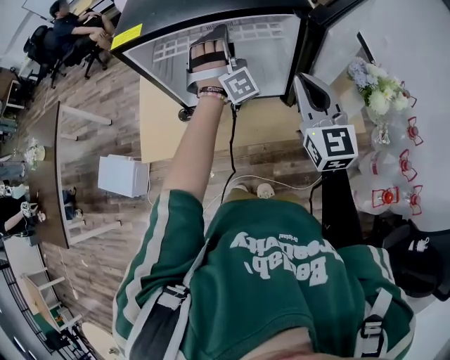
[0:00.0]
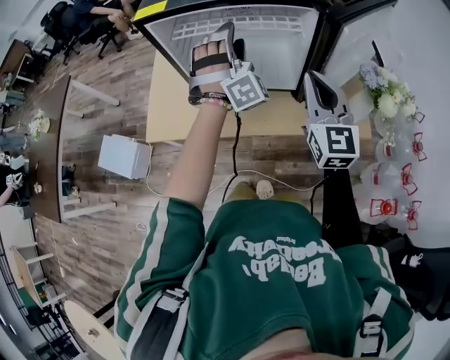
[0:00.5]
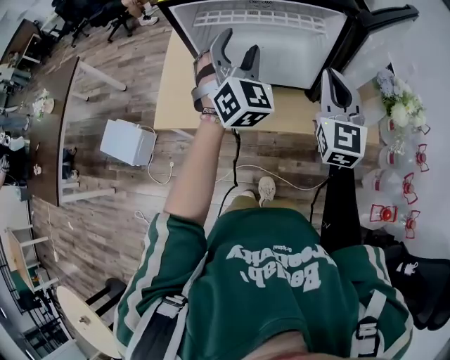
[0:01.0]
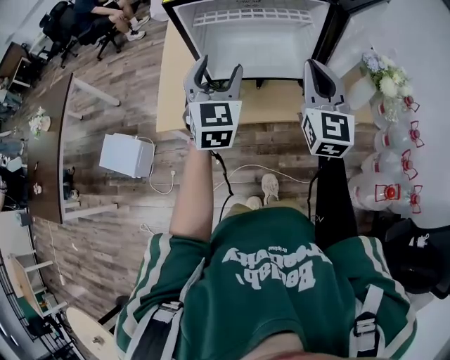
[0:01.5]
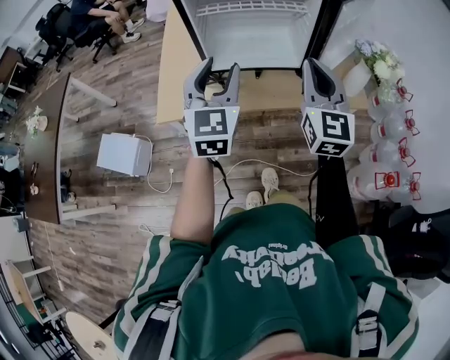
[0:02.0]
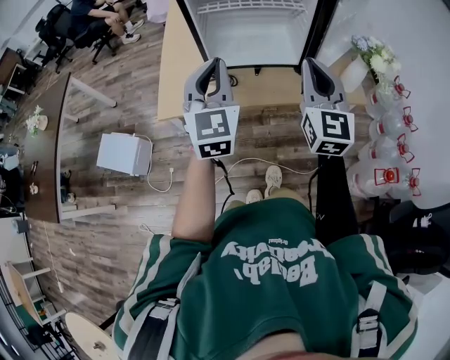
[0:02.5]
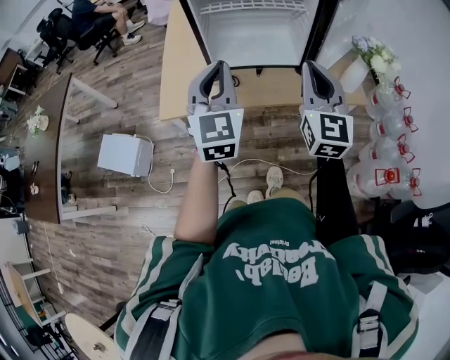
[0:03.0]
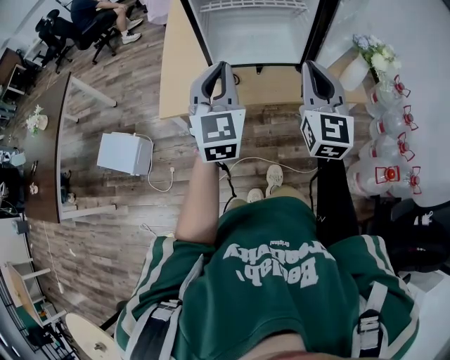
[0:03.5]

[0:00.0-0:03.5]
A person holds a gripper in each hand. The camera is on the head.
0:00.0 to 0:02.0: The left gripper moves backward and to the left, about 35 cm, and twists roughly 80 degrees counterclockwise, seen from behind. Meanwhile the right gripper moves backward and to the left, some 15 cm.
0:02.0 to 0:03.5: The left gripper closes up.

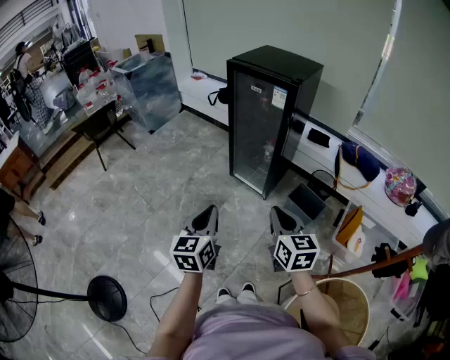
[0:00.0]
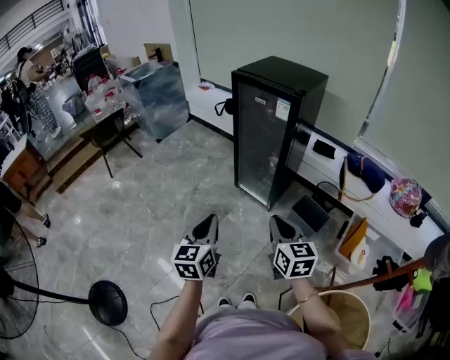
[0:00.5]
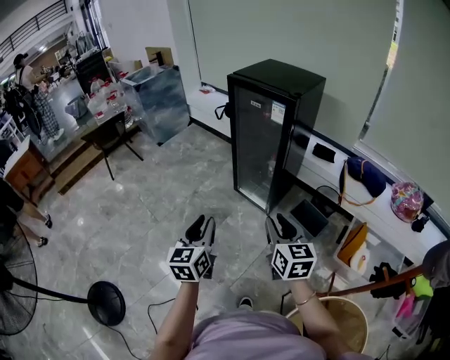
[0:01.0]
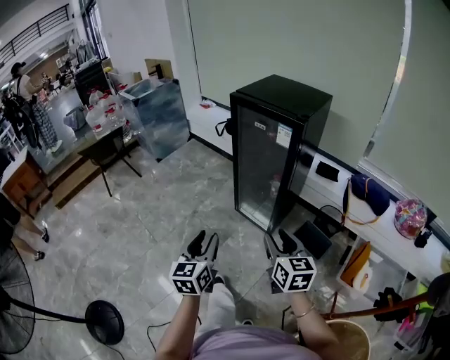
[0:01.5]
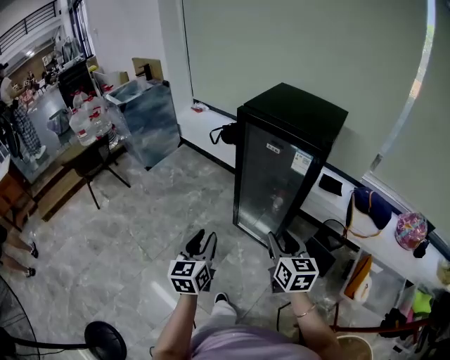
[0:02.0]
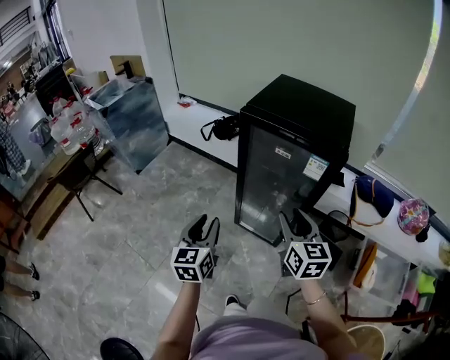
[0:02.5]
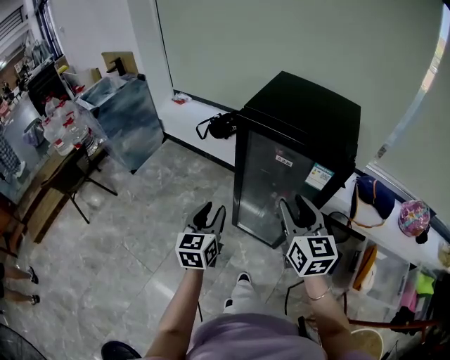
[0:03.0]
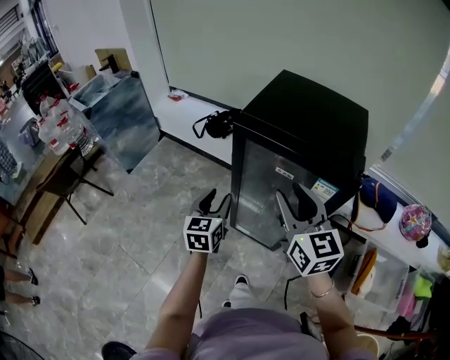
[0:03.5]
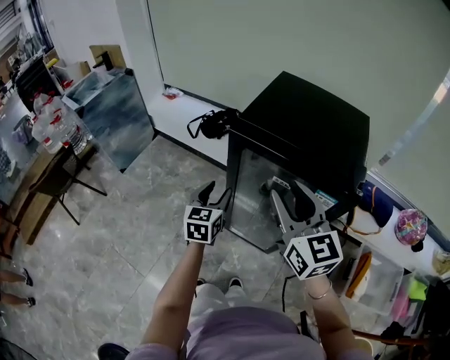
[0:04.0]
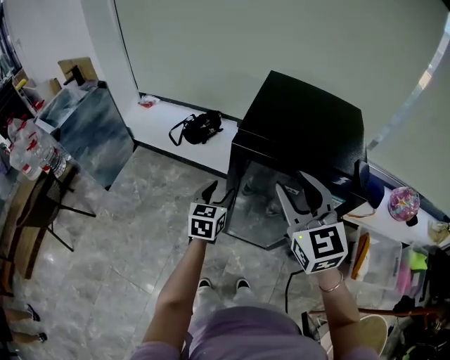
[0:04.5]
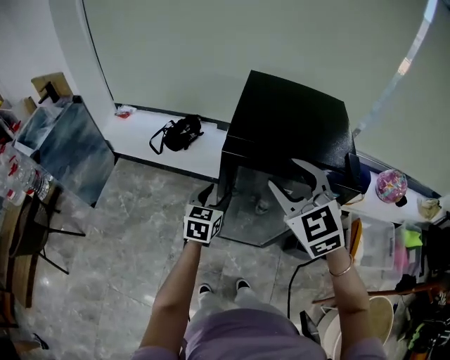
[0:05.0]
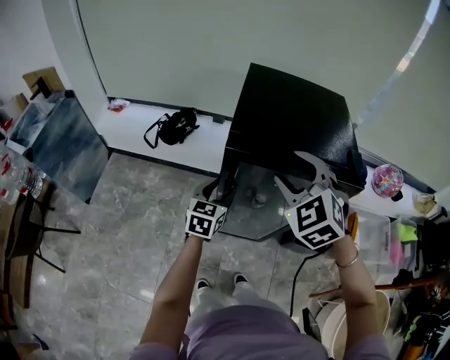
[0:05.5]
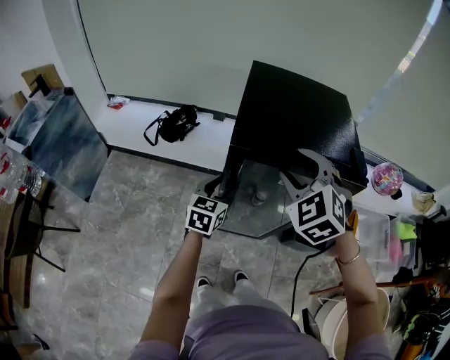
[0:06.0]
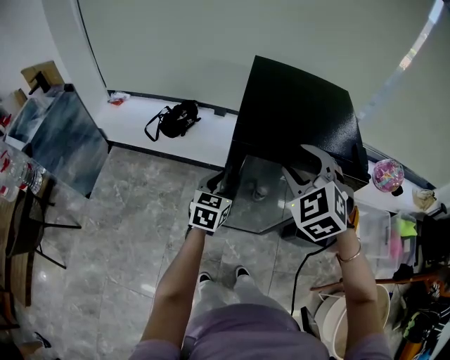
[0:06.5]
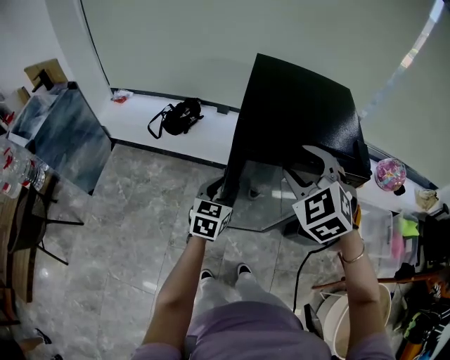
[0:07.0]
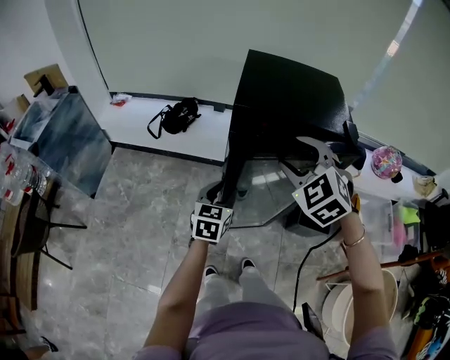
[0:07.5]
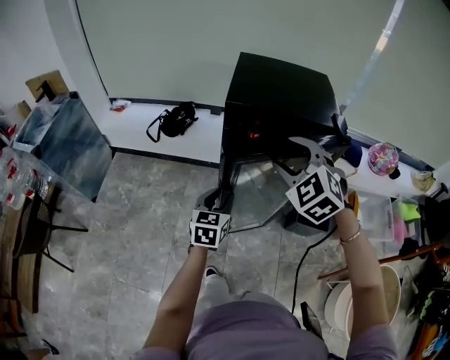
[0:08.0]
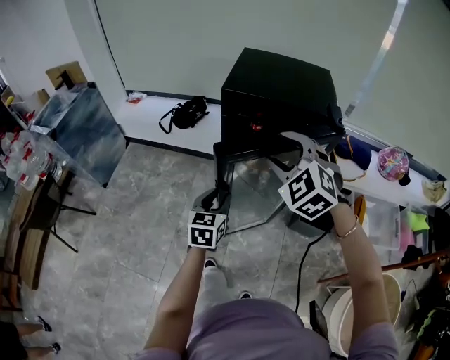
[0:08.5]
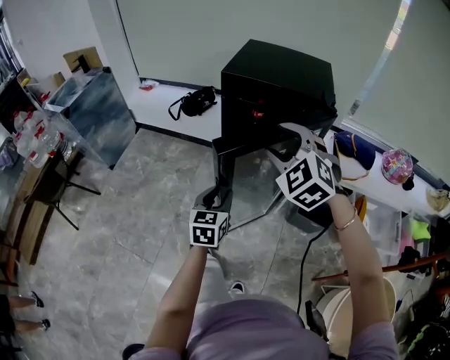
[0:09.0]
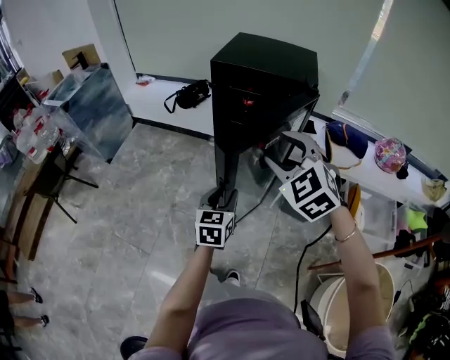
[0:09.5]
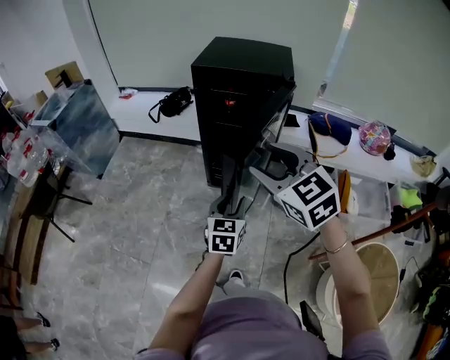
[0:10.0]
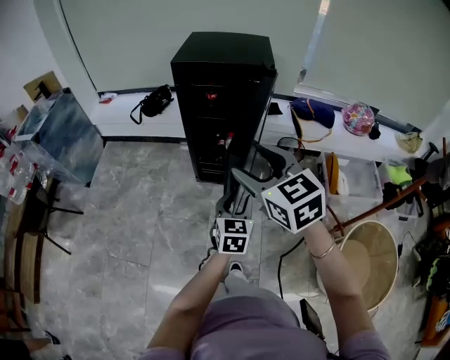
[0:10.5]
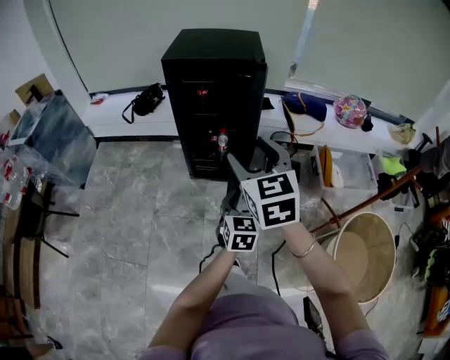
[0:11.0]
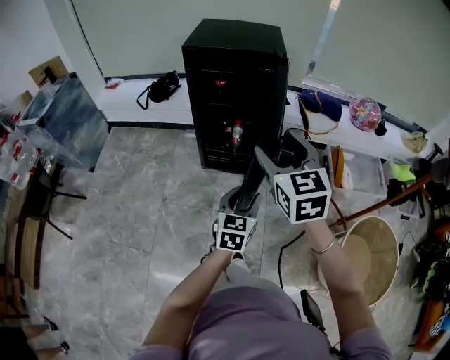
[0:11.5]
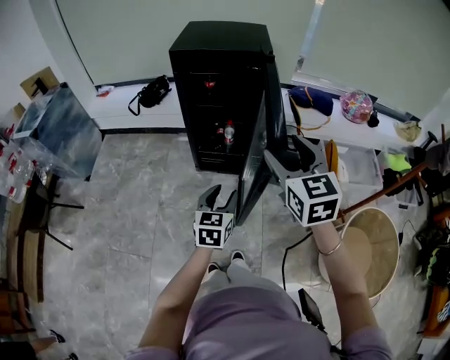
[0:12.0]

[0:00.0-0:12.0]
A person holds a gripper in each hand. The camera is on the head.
0:00.0 to 0:02.0: The grippers both shift forward by roughly 25 cm. The right gripper opens. Meanwhile the left gripper opens.
0:02.0 to 0:04.0: The right gripper goes approximately 30 cm forward and upward. The left gripper is displaced forward by about 40 cm.
0:04.0 to 0:06.0: The left gripper moves some 10 cm, and rotates roughly 30 degrees. Meanwhile the right gripper ends up some 10 cm from where it was, and turns by about 60 degrees.
0:06.0 to 0:08.0: The left gripper moves backward, roughly 15 cm; the right gripper moves backward, approximately 10 cm.
0:08.0 to 0:10.0: The right gripper is displaced backward by about 25 cm, and changes its angle by approximately 30 degrees. The left gripper moves backward and to the right, roughly 30 cm.
0:10.0 to 0:12.0: The left gripper reaches about 5 cm to the right, then returns. The right gripper goes some 5 cm to the right, and changes its angle by about 30 degrees.

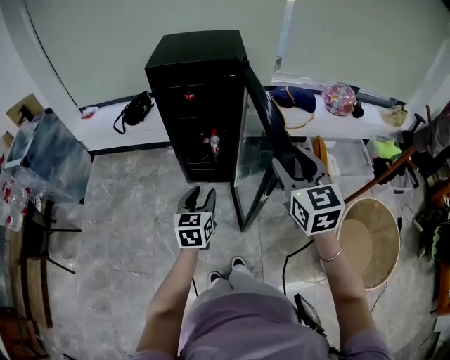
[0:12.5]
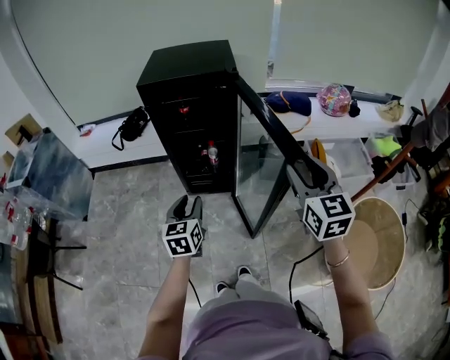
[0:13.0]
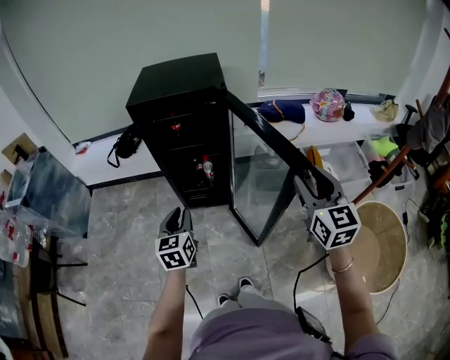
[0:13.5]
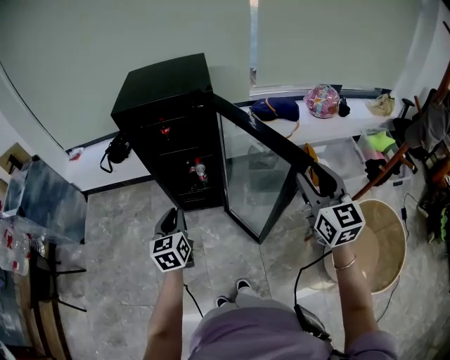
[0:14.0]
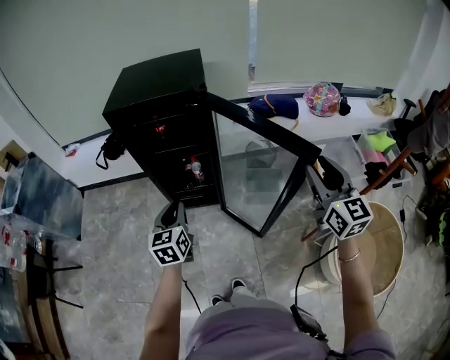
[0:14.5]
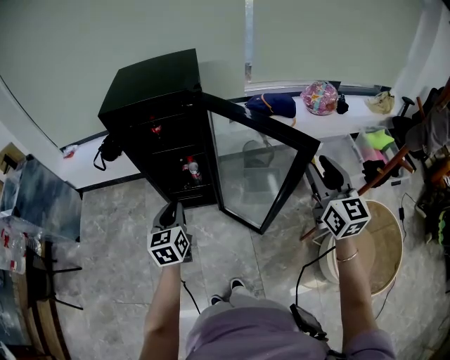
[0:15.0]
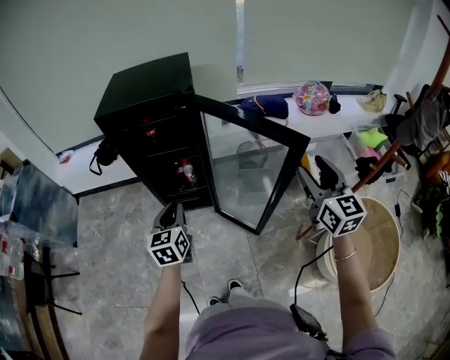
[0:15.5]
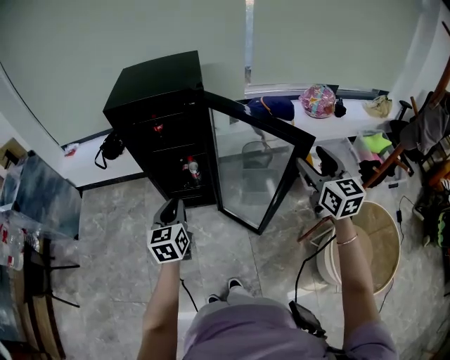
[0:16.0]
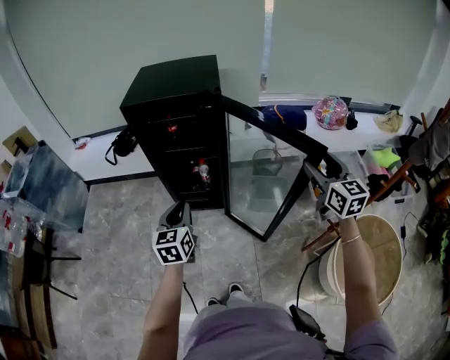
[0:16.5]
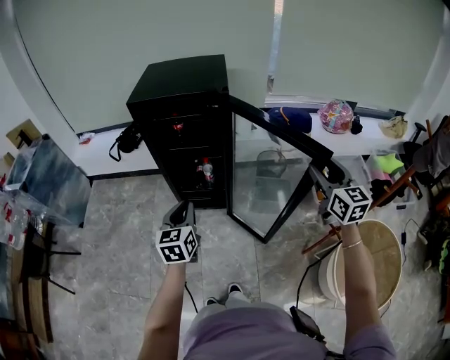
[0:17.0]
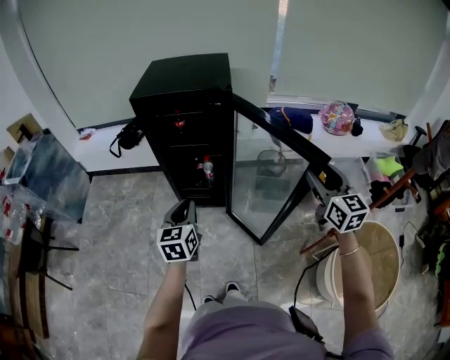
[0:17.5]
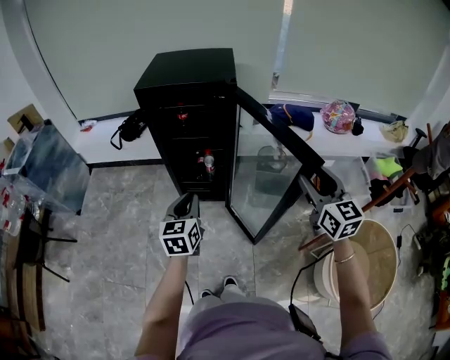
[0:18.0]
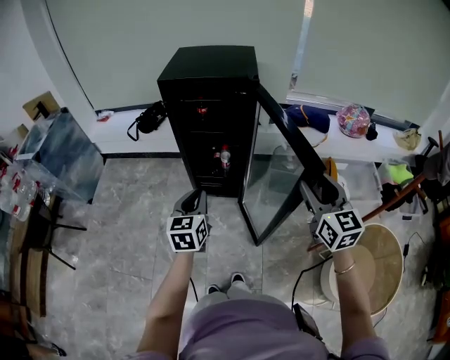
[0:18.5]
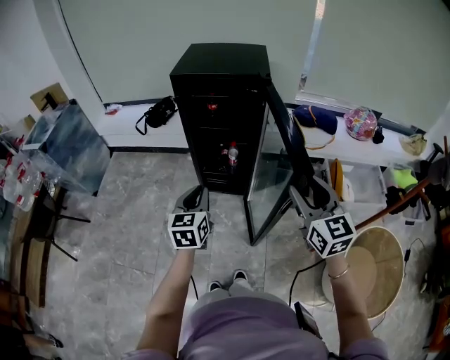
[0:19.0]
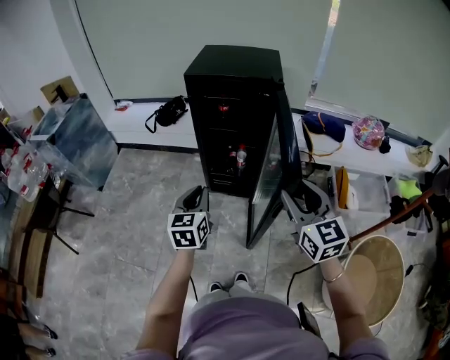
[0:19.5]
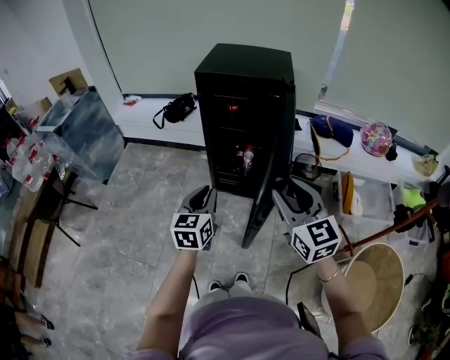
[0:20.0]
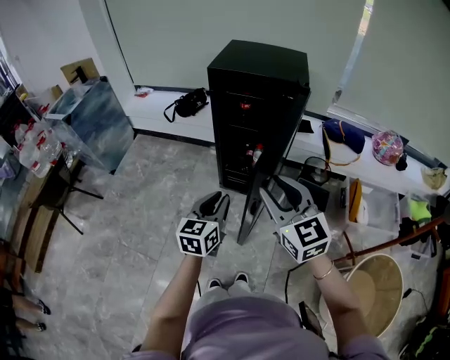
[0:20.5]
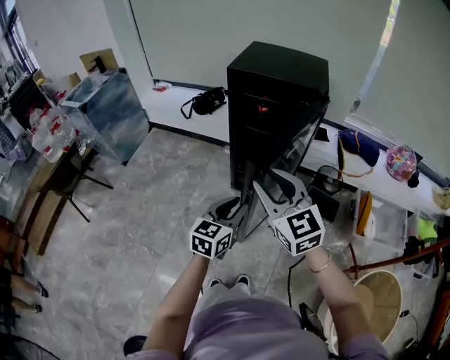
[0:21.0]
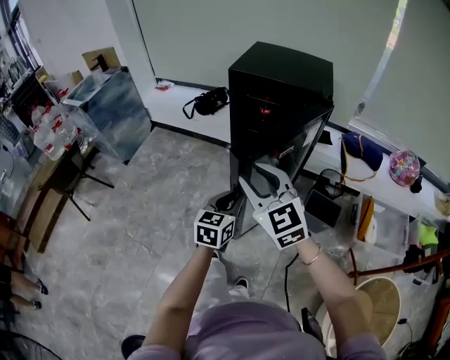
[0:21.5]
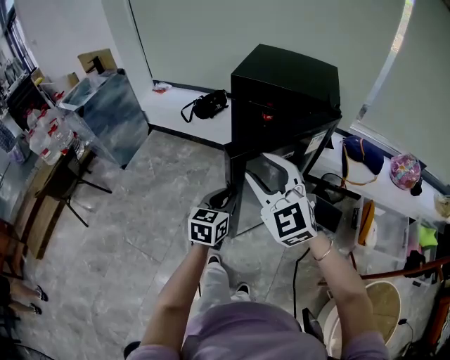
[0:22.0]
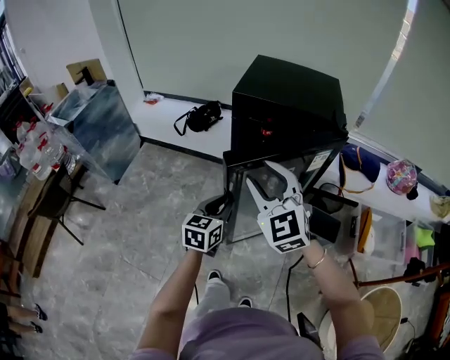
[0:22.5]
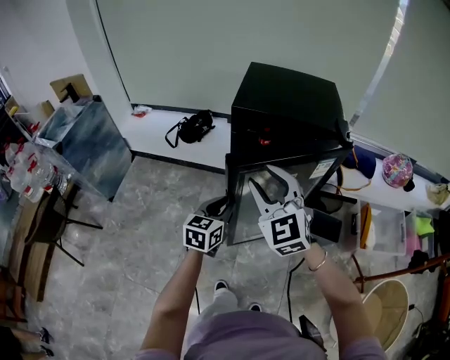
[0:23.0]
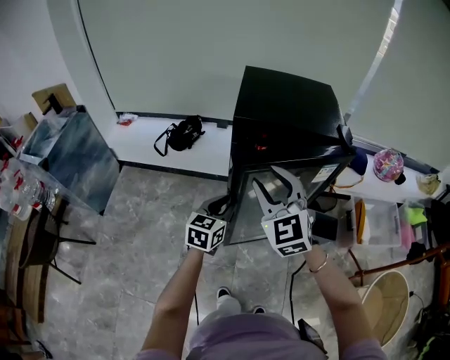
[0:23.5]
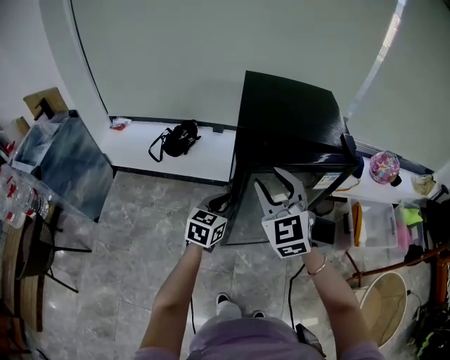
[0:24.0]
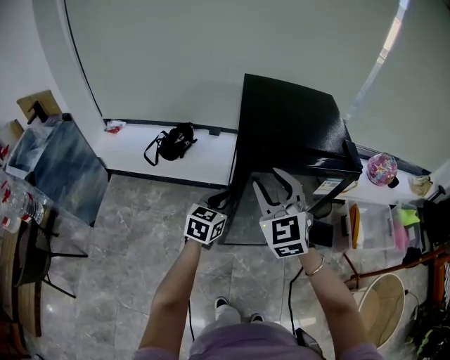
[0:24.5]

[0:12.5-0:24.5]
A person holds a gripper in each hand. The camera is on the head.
0:12.5 to 0:14.5: The right gripper travels to the right by roughly 20 cm, while the left gripper is displaced forward by some 10 cm, and closes.
0:14.5 to 0:16.5: The right gripper changes place by about 5 cm, and opens.
0:16.5 to 0:18.5: The right gripper moves to the left and backward, roughly 15 cm. The left gripper changes place by some 5 cm.
0:18.5 to 0:20.5: The right gripper travels to the left by approximately 20 cm, and changes its angle by approximately 30 degrees.
0:20.5 to 0:22.5: The right gripper is displaced forward and to the left by roughly 20 cm, and swivels approximately 20 degrees, while the left gripper is displaced forward by approximately 15 cm.
0:22.5 to 0:24.5: The grippers both shift forward by about 20 cm. The left gripper rotates roughly 20 degrees; the right gripper swivels roughly 20 degrees.
